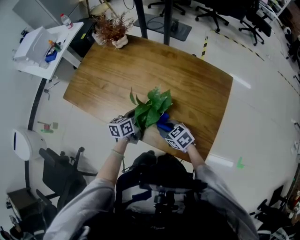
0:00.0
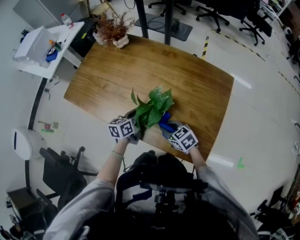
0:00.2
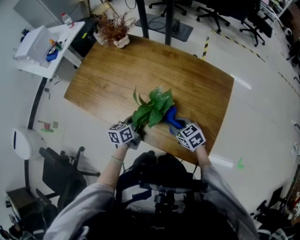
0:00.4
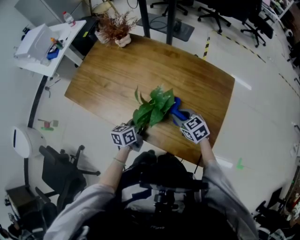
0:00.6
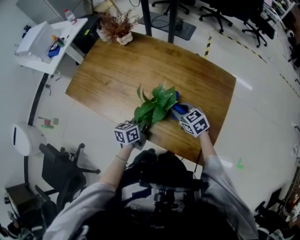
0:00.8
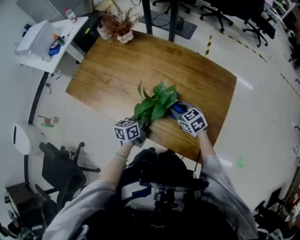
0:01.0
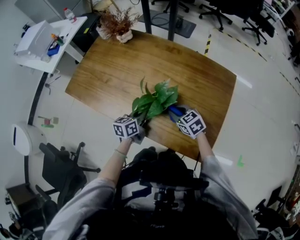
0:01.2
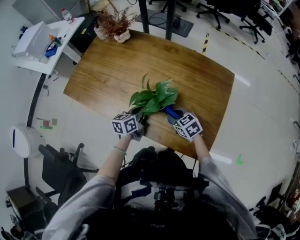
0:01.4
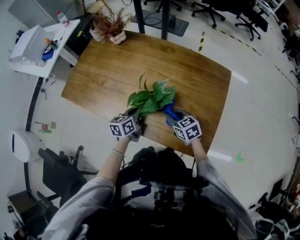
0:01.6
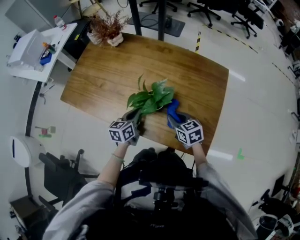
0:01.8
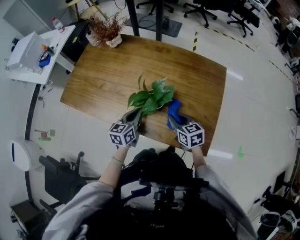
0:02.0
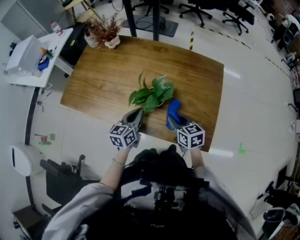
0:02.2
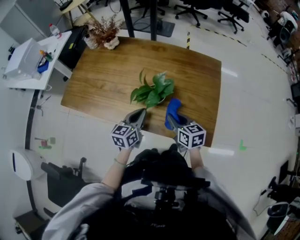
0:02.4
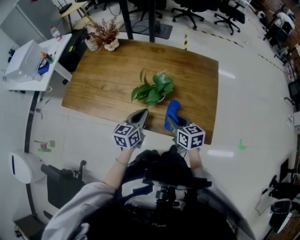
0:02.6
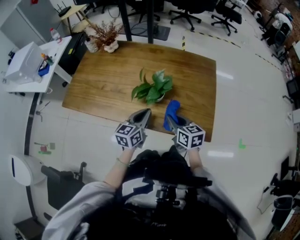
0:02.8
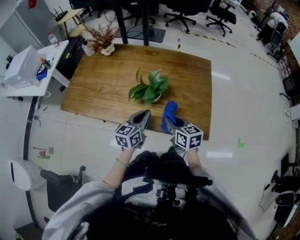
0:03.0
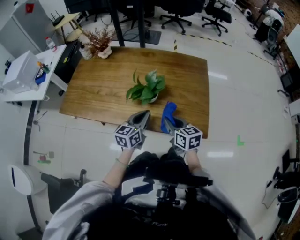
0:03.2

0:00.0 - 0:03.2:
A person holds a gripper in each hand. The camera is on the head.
0:01.6 - 0:03.2: Both grippers move backward and upward, roughly 15 cm. The left gripper changes its angle by about 30 degrees. The right gripper rotates some 30 degrees.

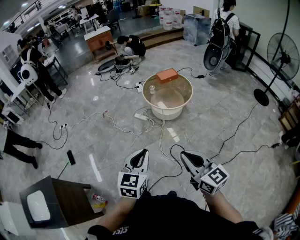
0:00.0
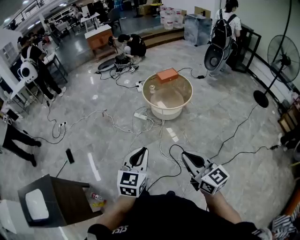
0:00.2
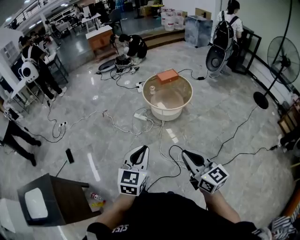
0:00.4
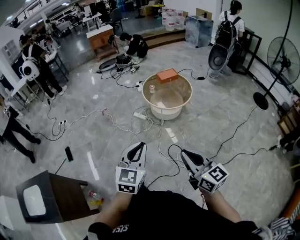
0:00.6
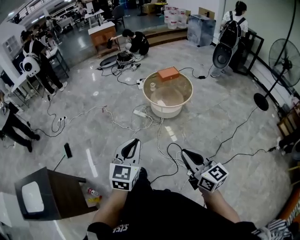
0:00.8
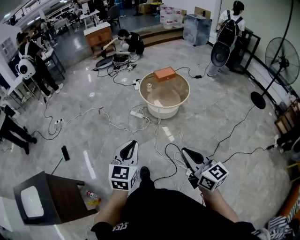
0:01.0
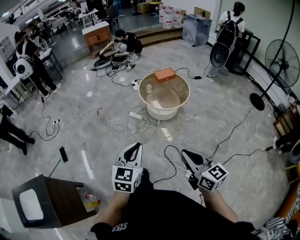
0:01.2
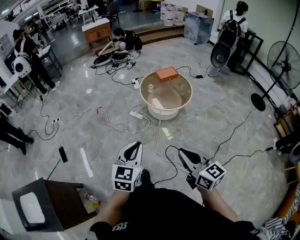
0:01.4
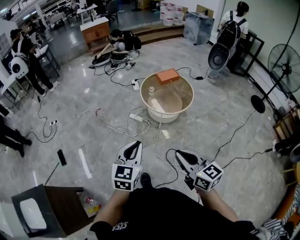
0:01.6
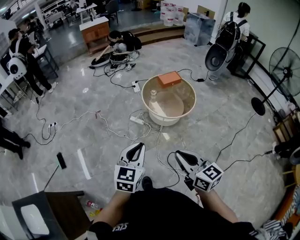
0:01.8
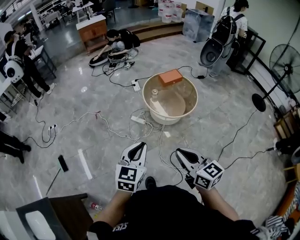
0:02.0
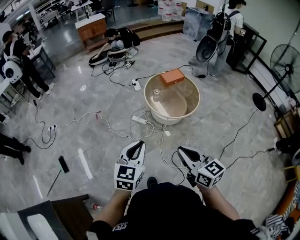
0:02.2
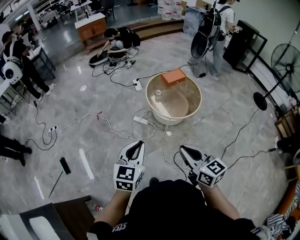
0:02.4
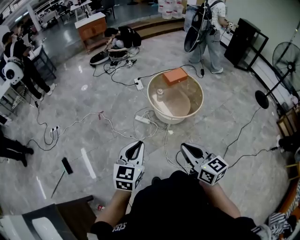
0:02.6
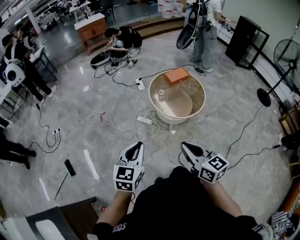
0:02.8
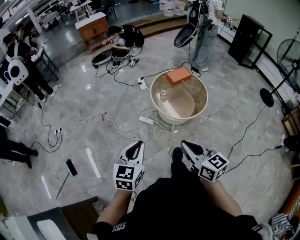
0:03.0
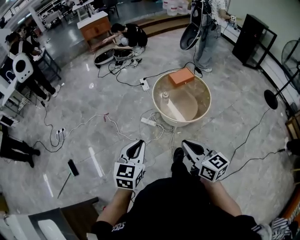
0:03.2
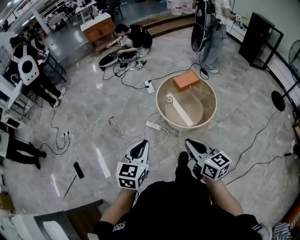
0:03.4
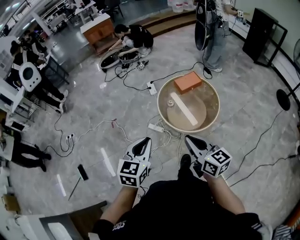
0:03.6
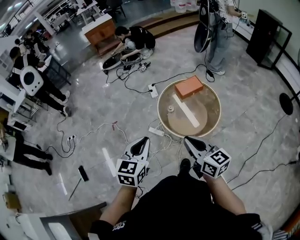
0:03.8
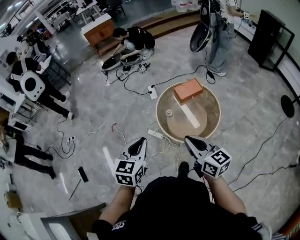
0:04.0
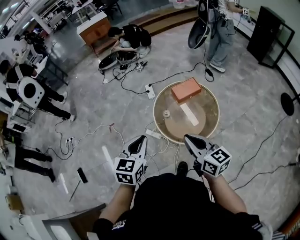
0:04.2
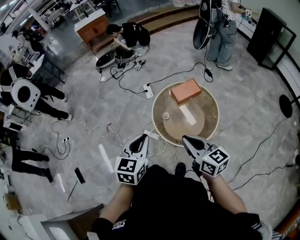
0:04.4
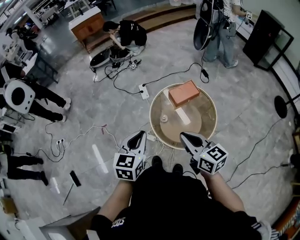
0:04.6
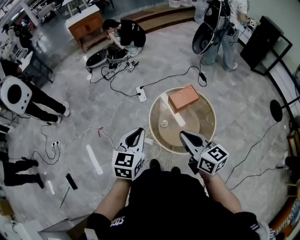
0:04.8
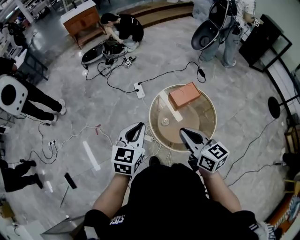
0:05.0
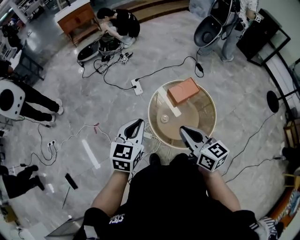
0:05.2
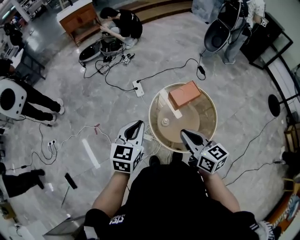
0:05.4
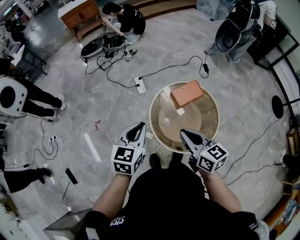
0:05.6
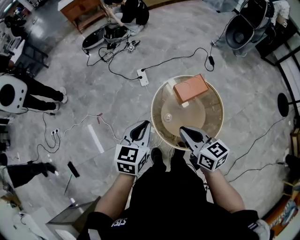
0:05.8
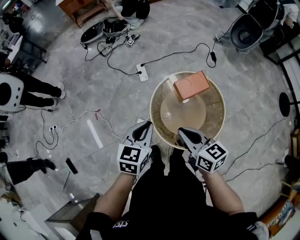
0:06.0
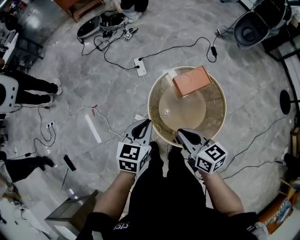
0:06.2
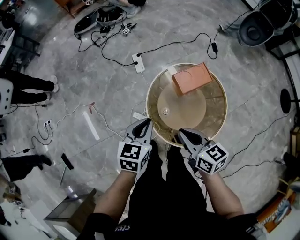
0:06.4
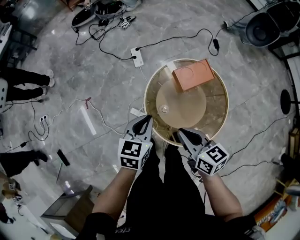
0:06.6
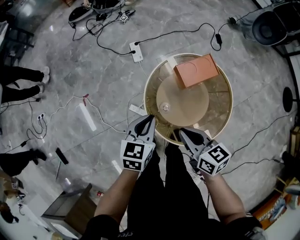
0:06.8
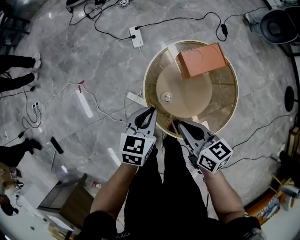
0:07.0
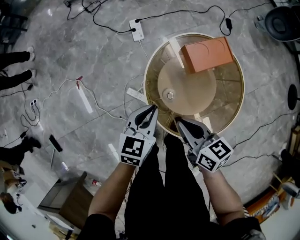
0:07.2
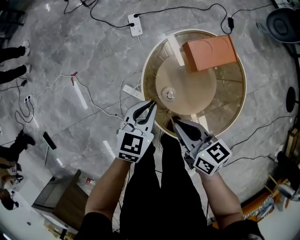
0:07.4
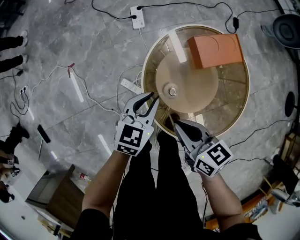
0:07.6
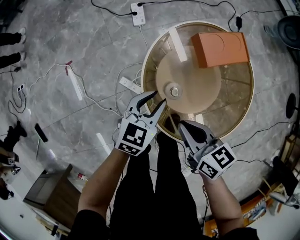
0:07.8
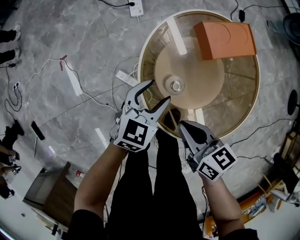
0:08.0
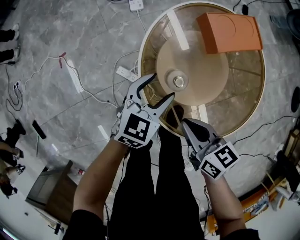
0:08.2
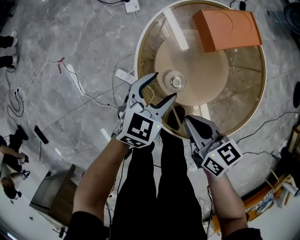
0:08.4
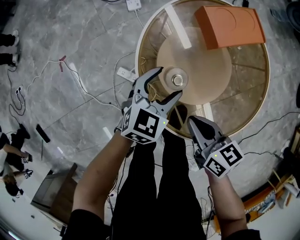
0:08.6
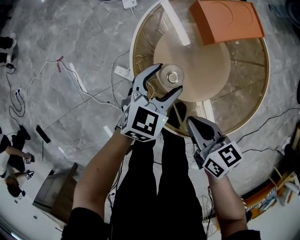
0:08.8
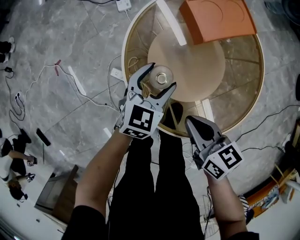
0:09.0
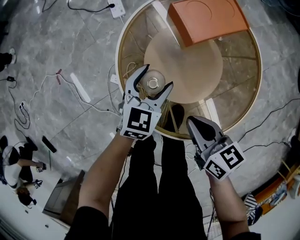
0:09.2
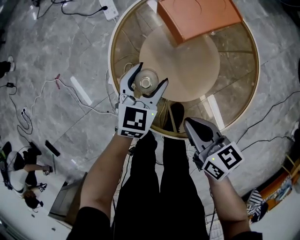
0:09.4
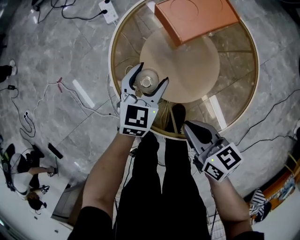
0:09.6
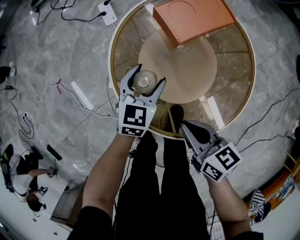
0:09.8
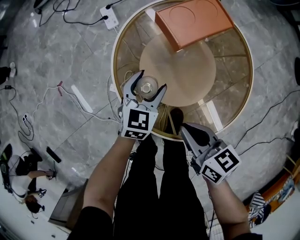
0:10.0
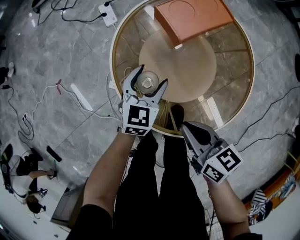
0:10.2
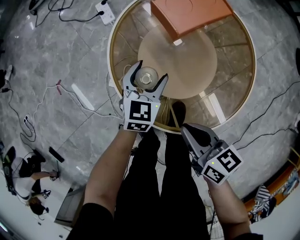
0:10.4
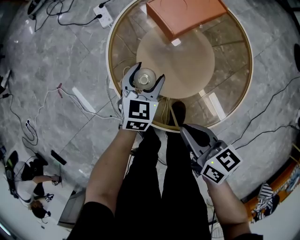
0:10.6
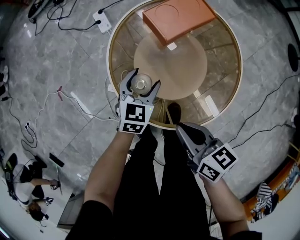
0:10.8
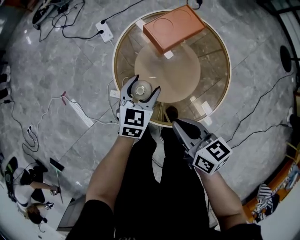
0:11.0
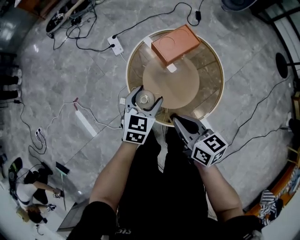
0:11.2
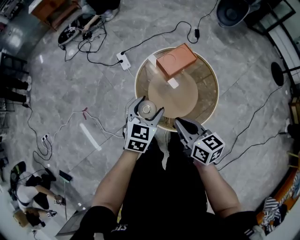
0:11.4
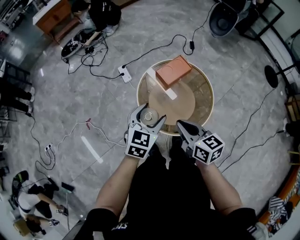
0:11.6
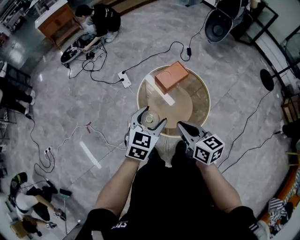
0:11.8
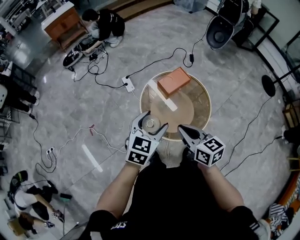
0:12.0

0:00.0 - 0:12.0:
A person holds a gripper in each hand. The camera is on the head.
0:00.0 - 0:01.6: The two grippers go some 15 cm forward.
0:01.6 - 0:03.0: The right gripper is displaced forward by roughly 20 cm; the left gripper travels forward and to the left by some 20 cm.
0:03.0 - 0:04.4: The two grippers go about 35 cm forward and to the right.
0:04.4 - 0:06.0: The two grippers go approximately 25 cm forward and downward.
0:06.0 - 0:07.6: Both grippers travel together downward, roughly 30 cm.
0:07.6 - 0:09.0: Both grippers move downward and to the right, about 15 cm. The left gripper opens.
0:09.0 - 0:10.4: There are only small adjustments of the grippers.
0:10.4 - 0:12.0: Both grippers travel together upward, some 50 cm. The right gripper turns by some 20 degrees.

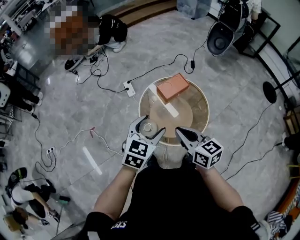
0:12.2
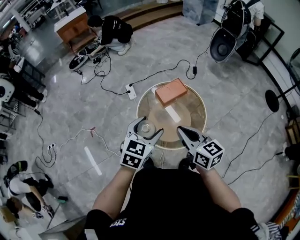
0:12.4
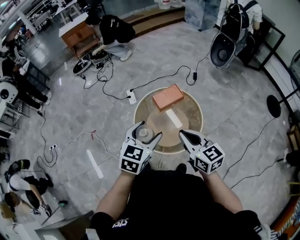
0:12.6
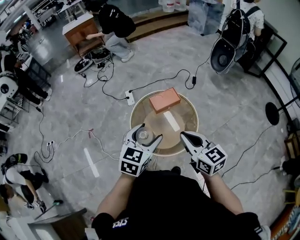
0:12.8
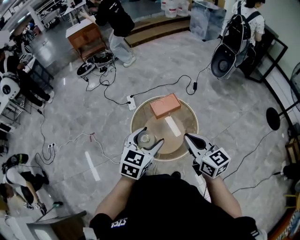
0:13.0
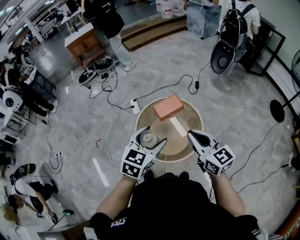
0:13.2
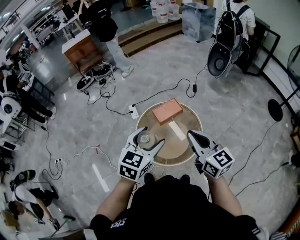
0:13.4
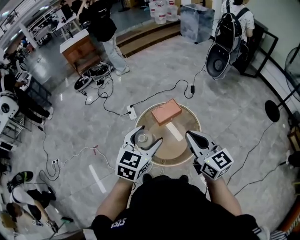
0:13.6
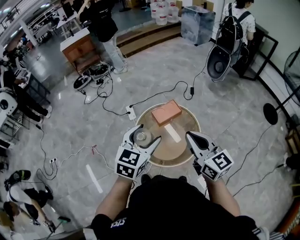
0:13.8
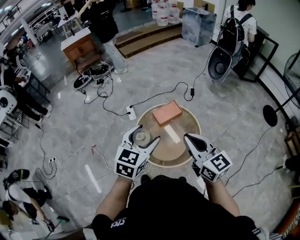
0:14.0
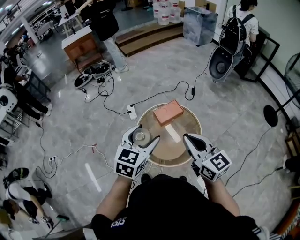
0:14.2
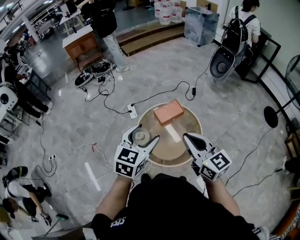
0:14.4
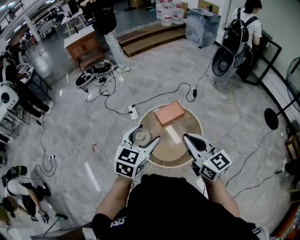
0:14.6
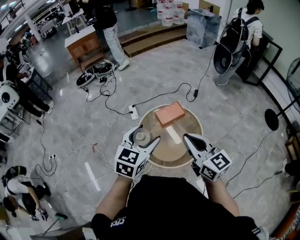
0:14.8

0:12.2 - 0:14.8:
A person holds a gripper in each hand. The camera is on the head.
0:12.2 - 0:13.4: Both grippers travel together to the right and upward, about 20 cm.
0:13.4 - 0:14.8: Both grippers travel together to the left, about 5 cm.

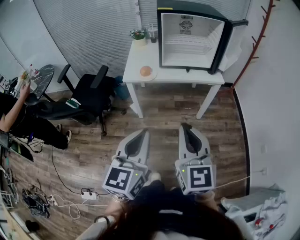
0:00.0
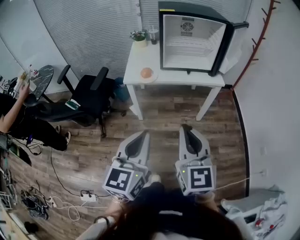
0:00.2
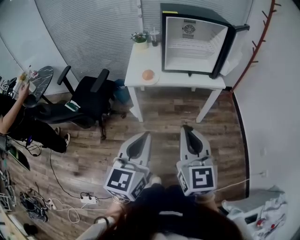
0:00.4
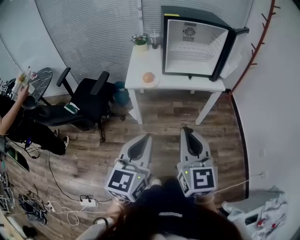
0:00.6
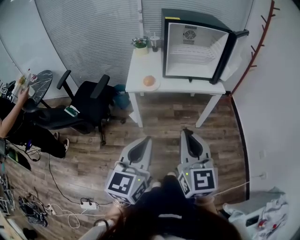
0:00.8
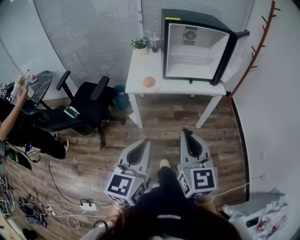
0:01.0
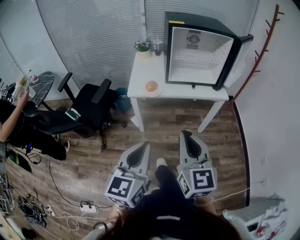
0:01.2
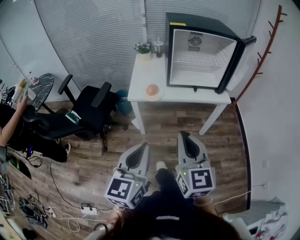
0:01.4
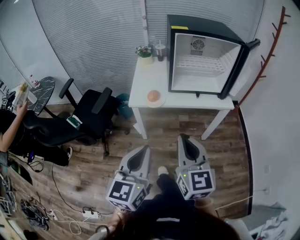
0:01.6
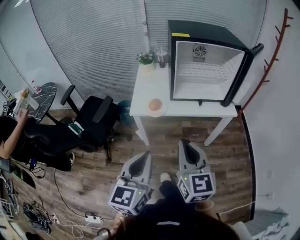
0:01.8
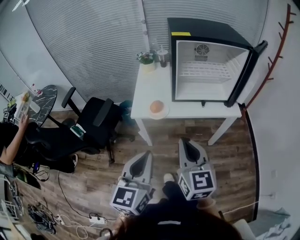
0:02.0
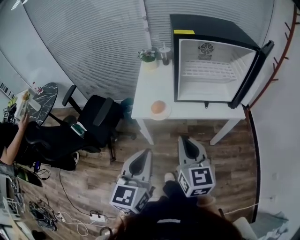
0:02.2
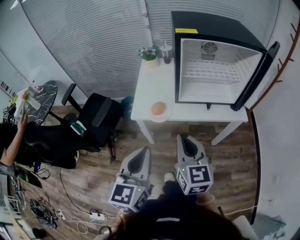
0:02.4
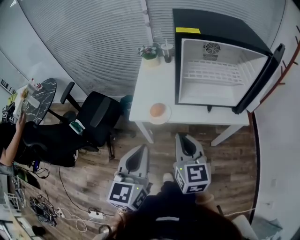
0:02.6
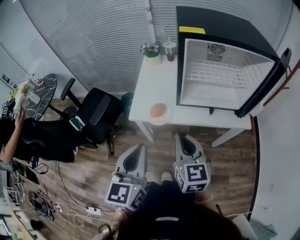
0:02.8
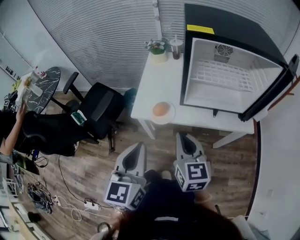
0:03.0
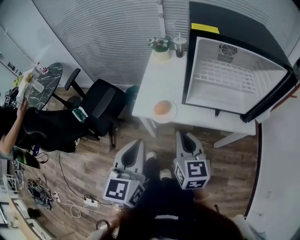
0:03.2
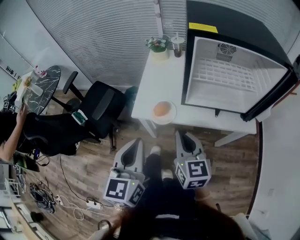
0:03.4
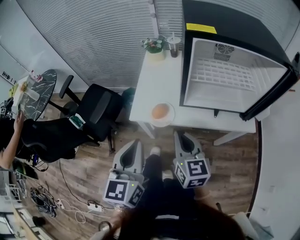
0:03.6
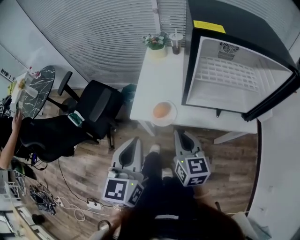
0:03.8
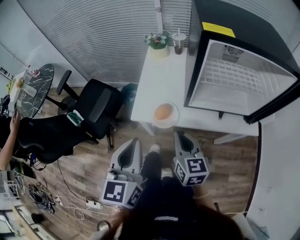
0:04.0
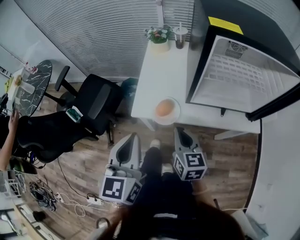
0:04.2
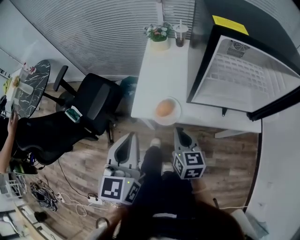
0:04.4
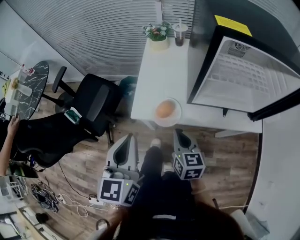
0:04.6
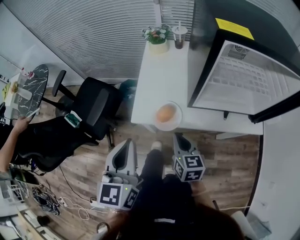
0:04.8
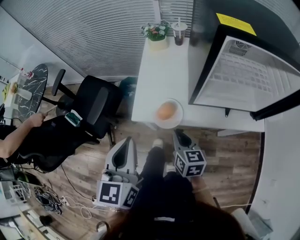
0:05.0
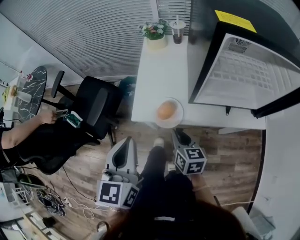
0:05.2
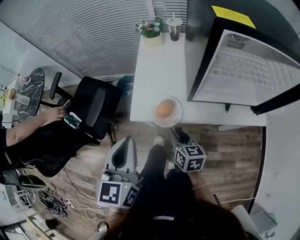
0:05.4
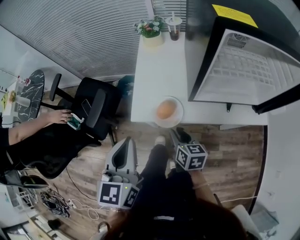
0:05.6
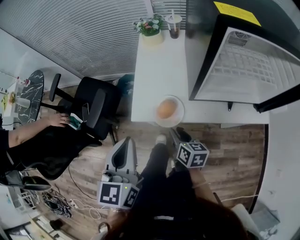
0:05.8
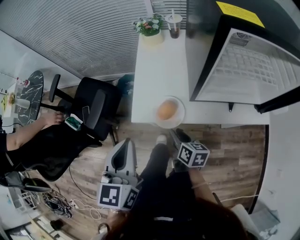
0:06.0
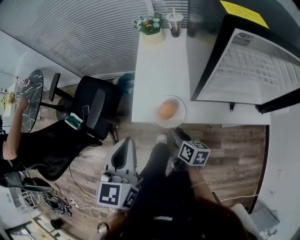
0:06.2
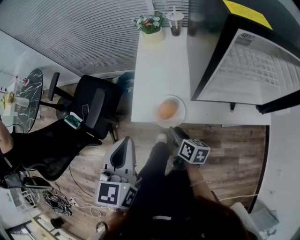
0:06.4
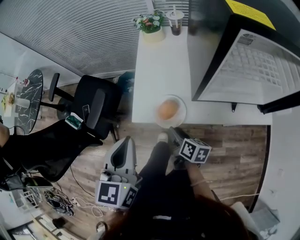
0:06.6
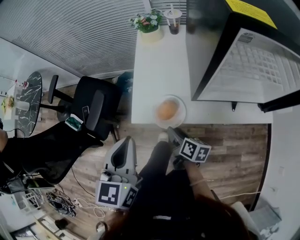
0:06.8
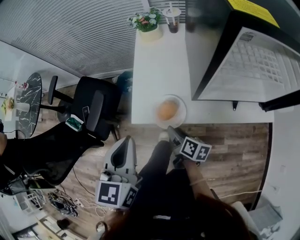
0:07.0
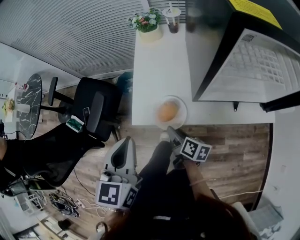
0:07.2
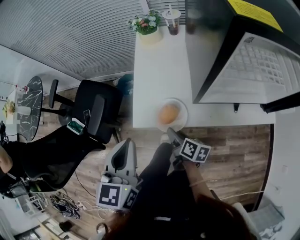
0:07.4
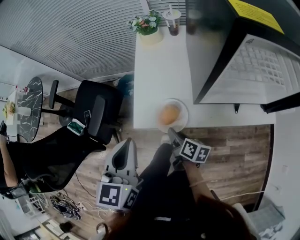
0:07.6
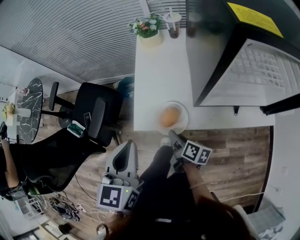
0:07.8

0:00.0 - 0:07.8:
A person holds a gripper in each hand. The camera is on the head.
0:00.0 - 0:01.6: Both grippers move forward and to the left, about 15 cm.
0:01.6 - 0:03.2: The right gripper travels forward and downward by approximately 25 cm. The left gripper shifts about 20 cm forward.
0:03.2 - 0:04.6: The right gripper goes approximately 15 cm downward and forward. Meanwhile the left gripper is displaced forward and to the left by some 10 cm.
0:04.6 - 0:06.2: The right gripper goes roughly 10 cm downward, changes its angle by roughly 30 degrees, and opens up.
0:06.2 - 0:07.8: The grippers move only a little.
